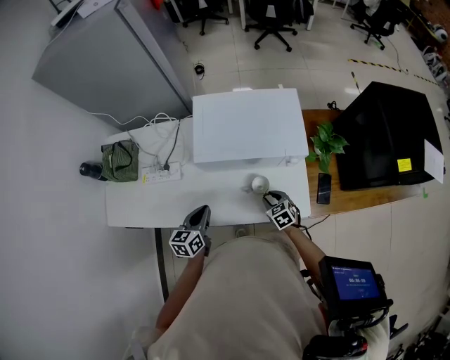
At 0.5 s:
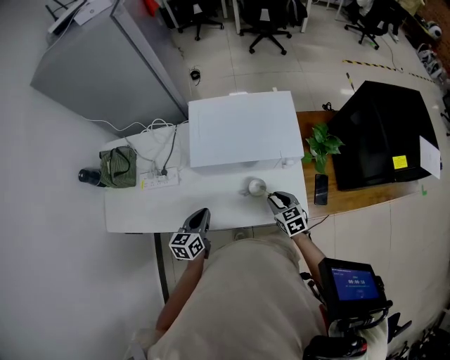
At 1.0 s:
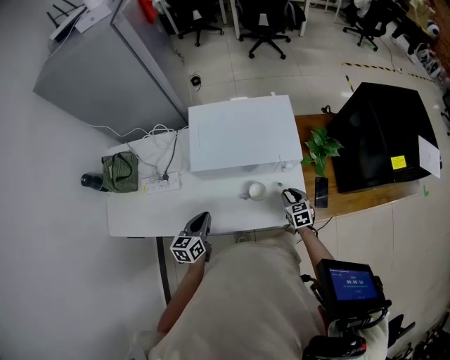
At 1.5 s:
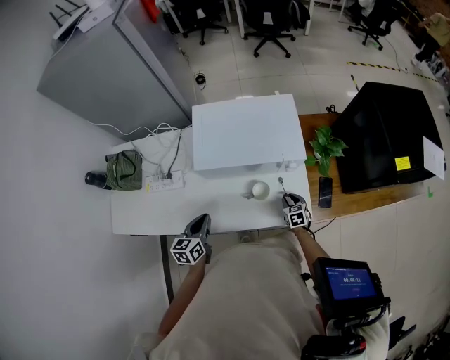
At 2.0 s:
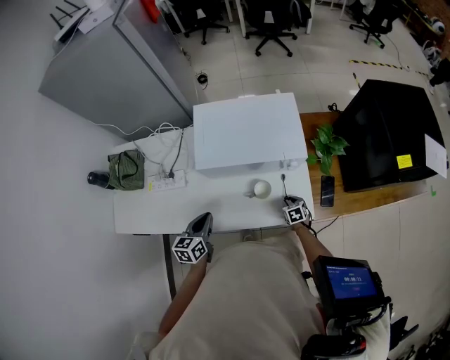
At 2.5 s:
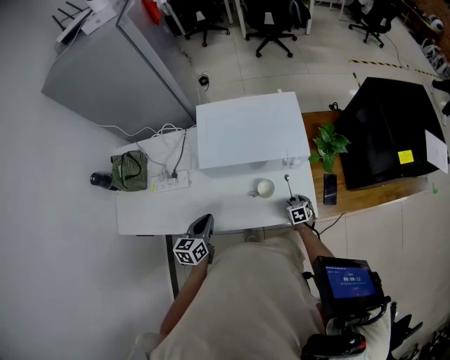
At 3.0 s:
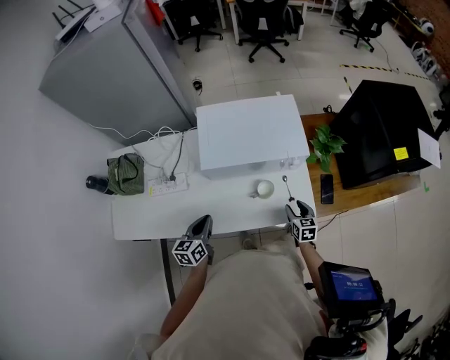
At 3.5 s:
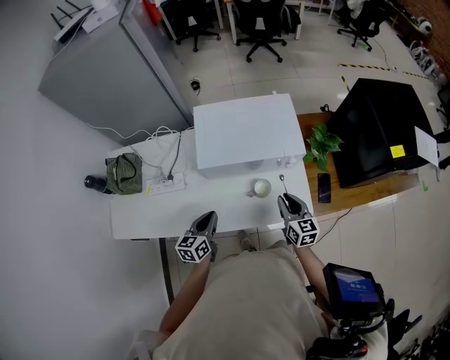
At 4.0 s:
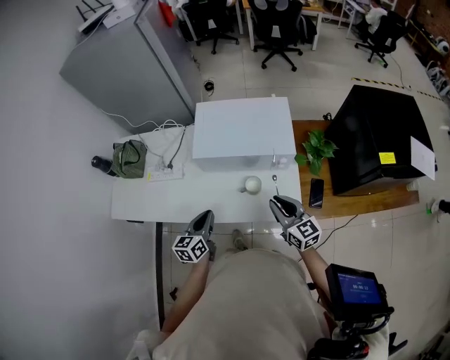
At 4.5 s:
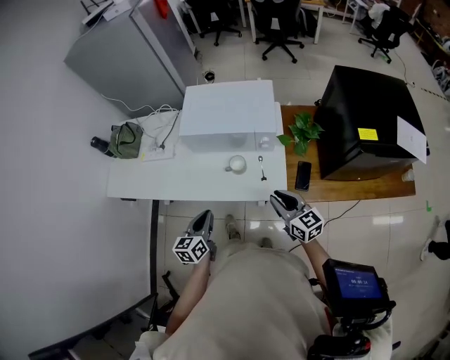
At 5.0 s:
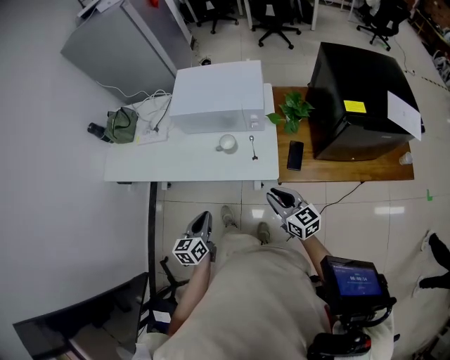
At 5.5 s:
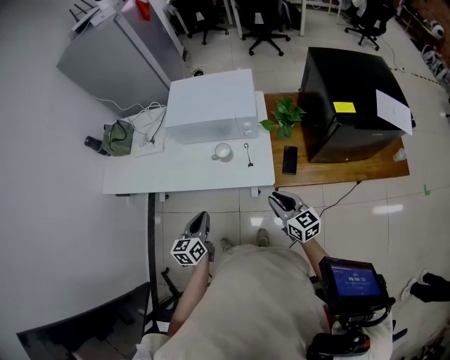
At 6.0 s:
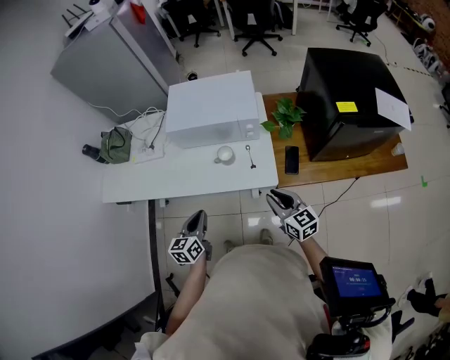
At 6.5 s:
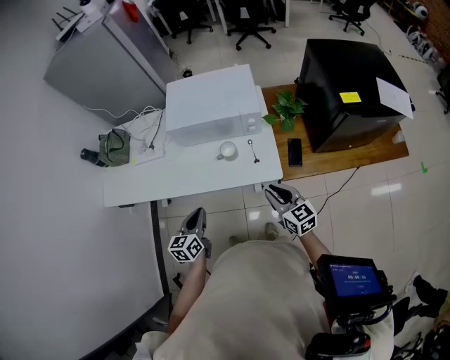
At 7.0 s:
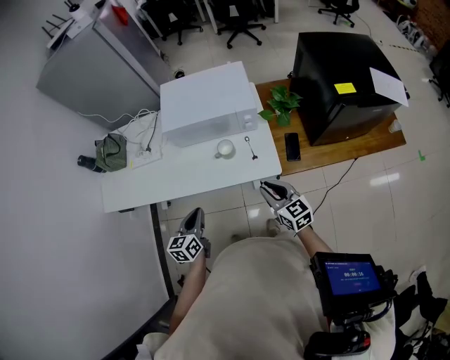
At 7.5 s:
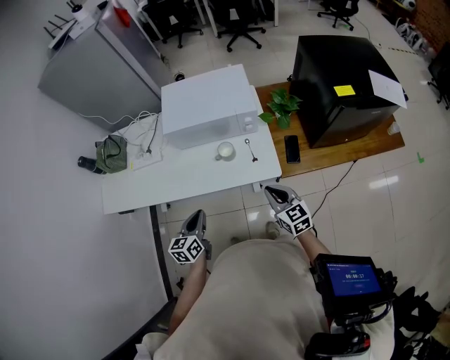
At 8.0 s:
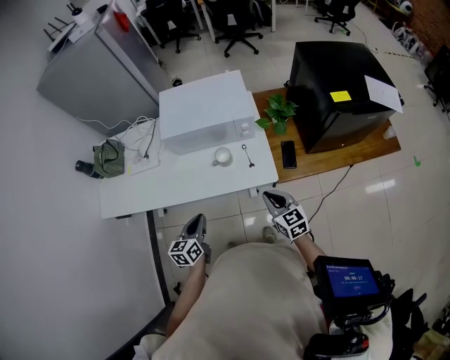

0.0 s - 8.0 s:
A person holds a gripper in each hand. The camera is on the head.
0.0 s - 2.0 s: The right gripper heads downward and to the right, covering some 15 cm.
2.0 s - 4.0 s: The left gripper goes about 10 cm to the right and backward. Meanwhile the right gripper travels upward by roughly 35 cm, angles its fingers upward, by roughly 50 degrees, and opens and closes again.
4.0 s - 6.0 s: The right gripper heads backward and to the right, covering about 20 cm, while the left gripper moves backward, approximately 15 cm.
6.0 s - 8.0 s: The left gripper ends up roughly 5 cm from where it was. Meanwhile the right gripper heads to the left, covering roughly 5 cm.

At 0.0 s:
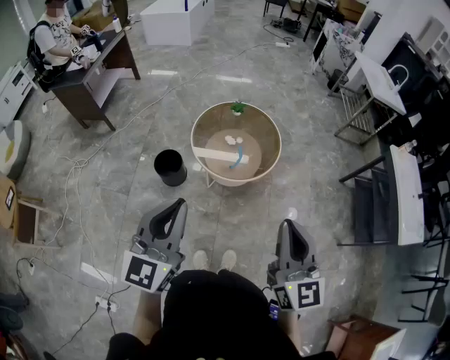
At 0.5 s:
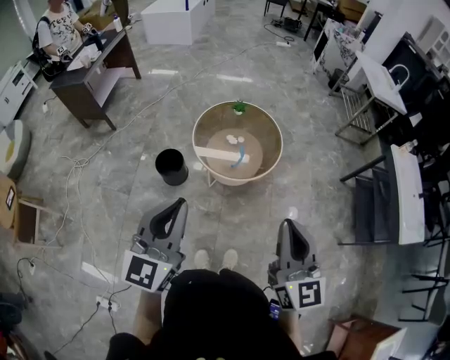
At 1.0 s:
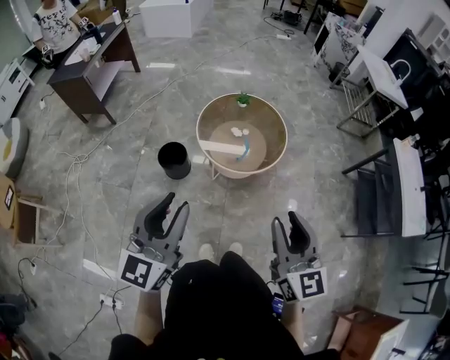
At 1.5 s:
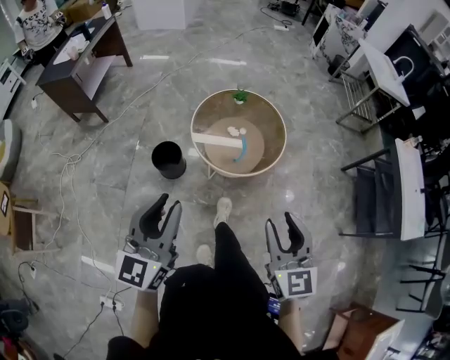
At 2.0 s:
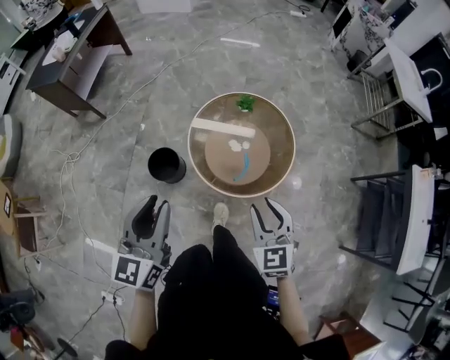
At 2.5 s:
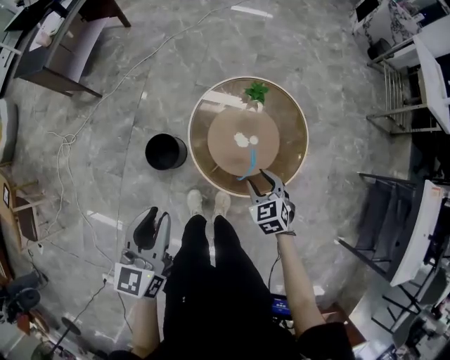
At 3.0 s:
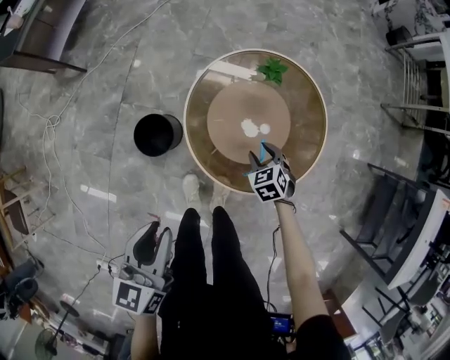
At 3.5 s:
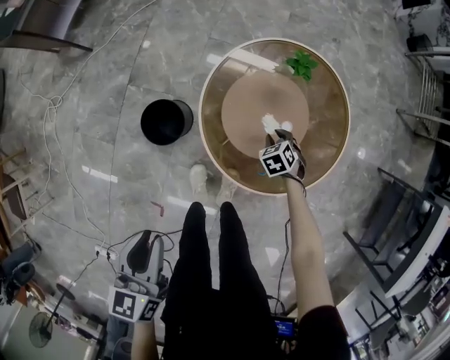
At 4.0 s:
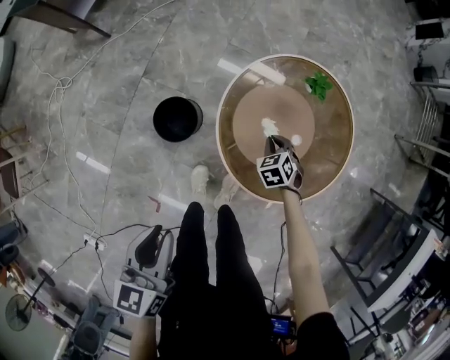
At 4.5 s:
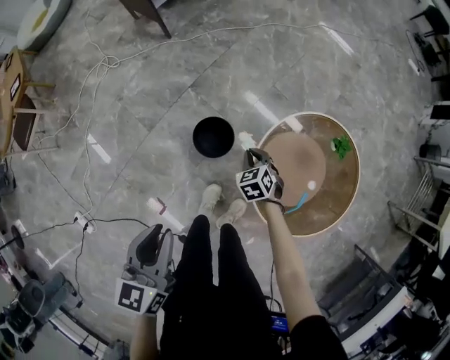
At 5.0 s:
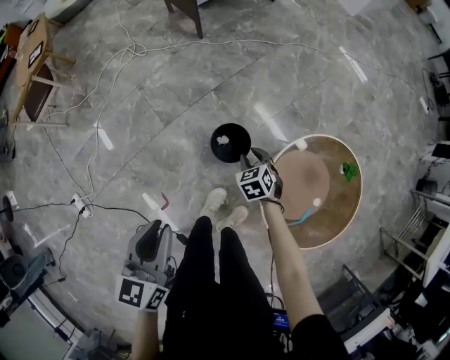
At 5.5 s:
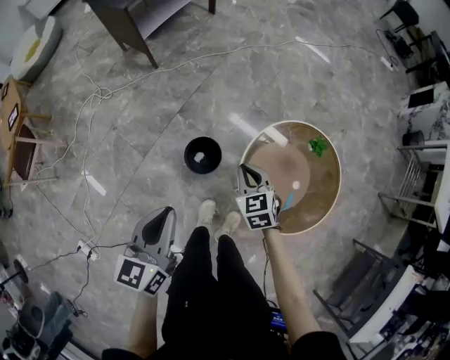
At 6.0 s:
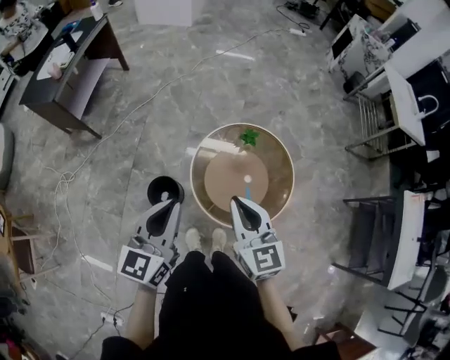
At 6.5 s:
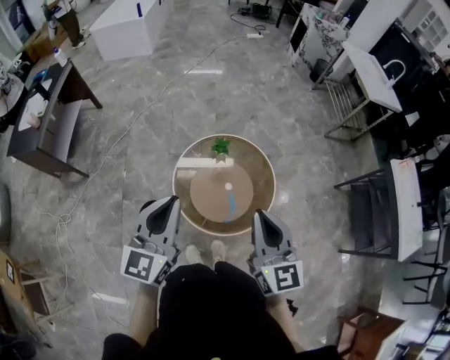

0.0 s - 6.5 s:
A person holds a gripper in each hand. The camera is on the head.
0.0 s - 2.0 s: Both grippers travel together forward and downward, about 30 cm. The left gripper opens up, while the right gripper changes its angle by roughly 40 degrees, and opens.
2.0 s - 4.5 s: The left gripper changes place by approximately 20 cm, and turns by approximately 40 degrees. Meanwhile the right gripper moves some 50 cm, points its fingers some 30 degrees further downward, and closes up.
4.5 s - 6.5 s: The right gripper shifts some 50 cm upward, angles its fingers upward, by roughly 50 degrees, and opens and closes again, while the left gripper moves roughly 35 cm, and rotates approximately 60 degrees.

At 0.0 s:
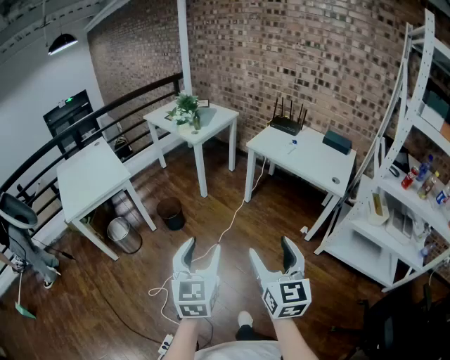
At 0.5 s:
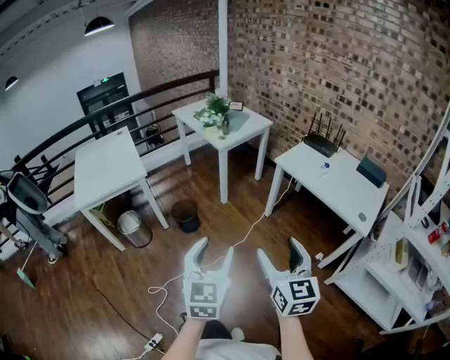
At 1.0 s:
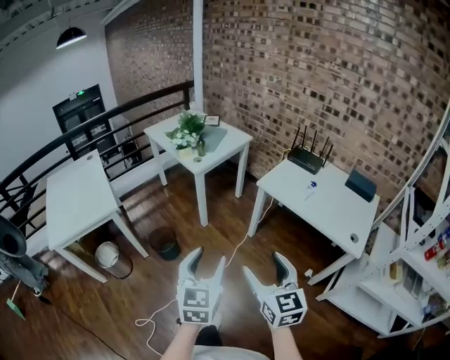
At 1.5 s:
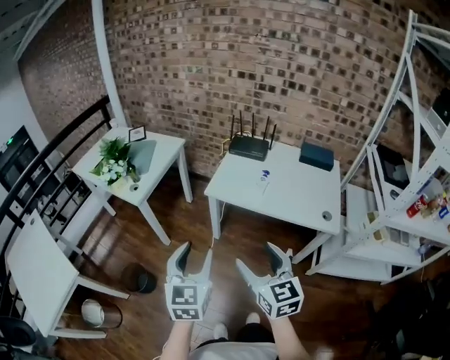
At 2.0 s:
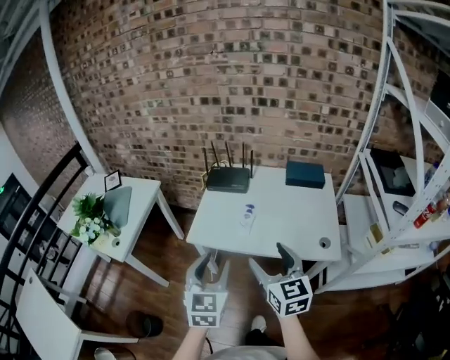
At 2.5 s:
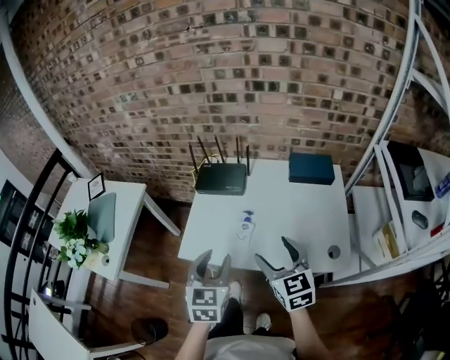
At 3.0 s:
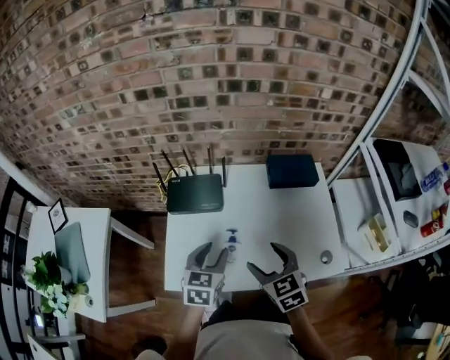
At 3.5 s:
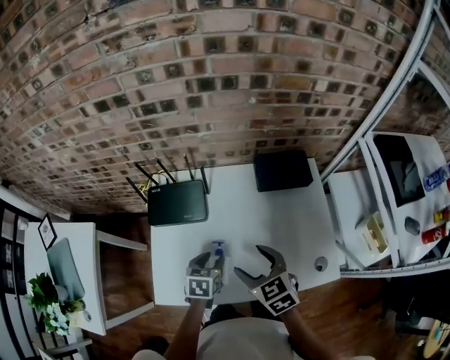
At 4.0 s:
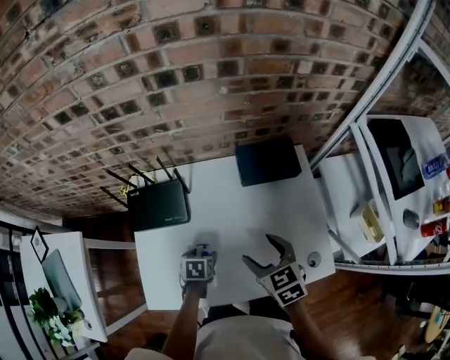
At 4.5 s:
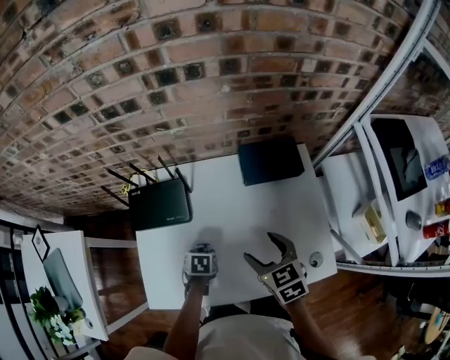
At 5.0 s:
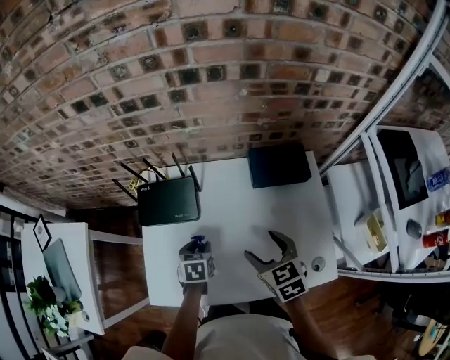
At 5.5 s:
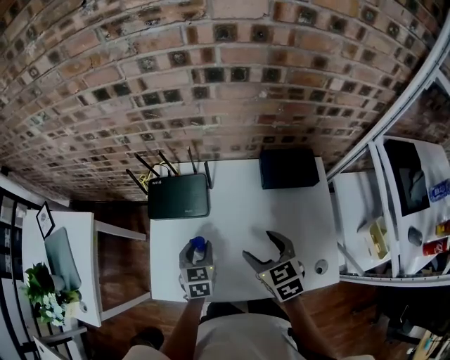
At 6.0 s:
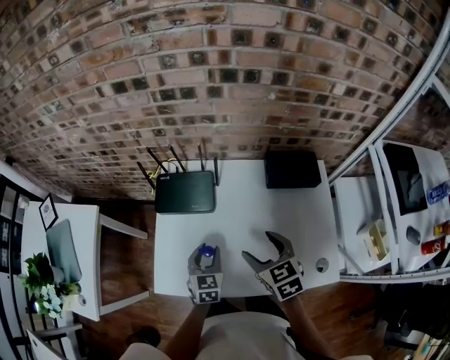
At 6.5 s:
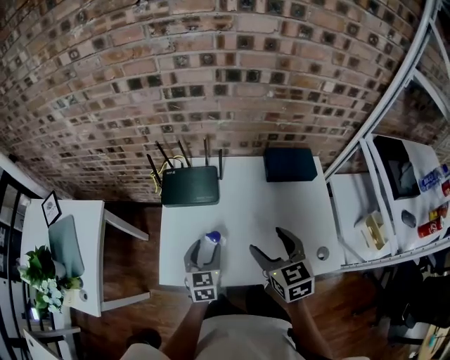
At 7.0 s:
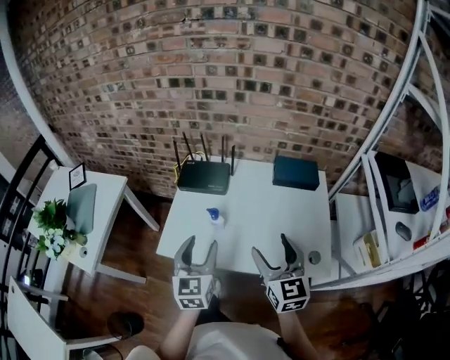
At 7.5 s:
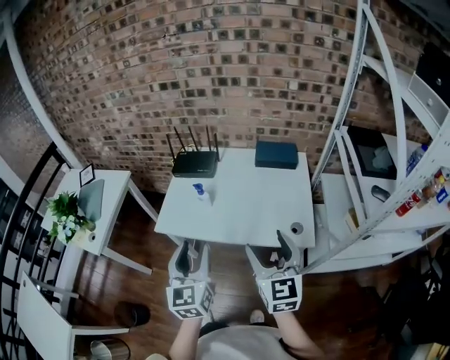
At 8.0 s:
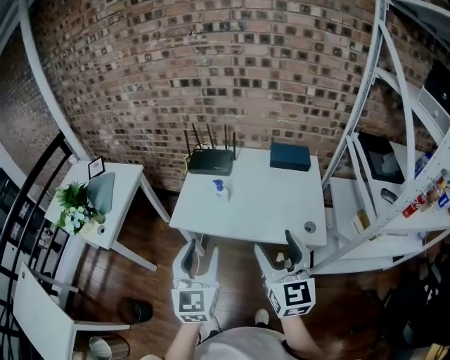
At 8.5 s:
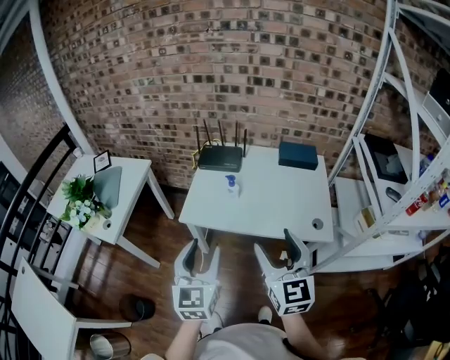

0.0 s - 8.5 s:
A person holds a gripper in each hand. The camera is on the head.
0.0 s - 2.0 s: The two grippers travel together, approximately 60 cm. The right gripper rotates approximately 20 degrees, while the left gripper rotates some 30 degrees.
2.0 s - 4.0 s: The grippers both shift forward and downward by roughly 50 cm. The right gripper swivels roughly 30 degrees; the left gripper tips its fingers downward by about 50 degrees, and opens its fingers.
4.0 s - 6.5 s: The right gripper shifts about 10 cm to the left, upward and backward; the left gripper is displaced upward and to the left by approximately 15 cm, and points its fingers approximately 40 degrees further upward.
6.5 s - 8.5 s: The two grippers go some 40 cm backward and upward. The left gripper rotates roughly 20 degrees. Meanwhile the right gripper rotates some 30 degrees.

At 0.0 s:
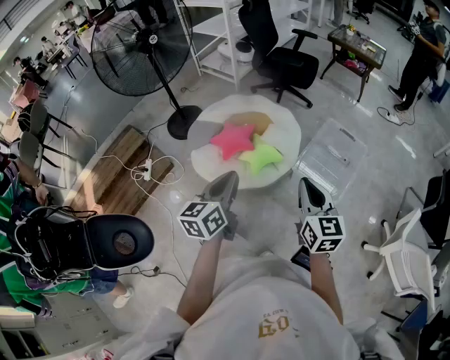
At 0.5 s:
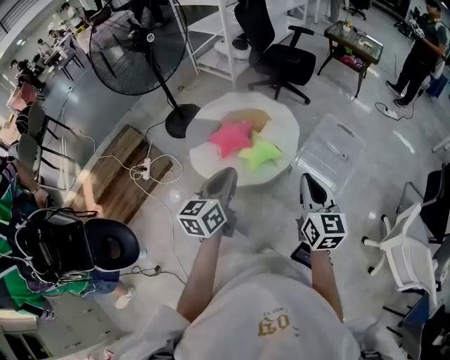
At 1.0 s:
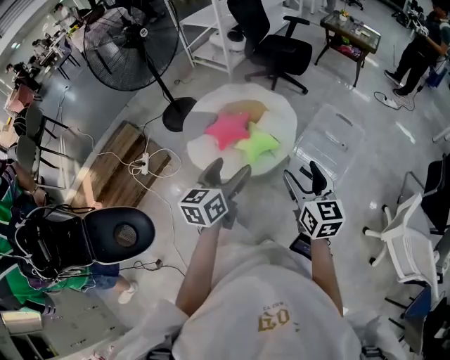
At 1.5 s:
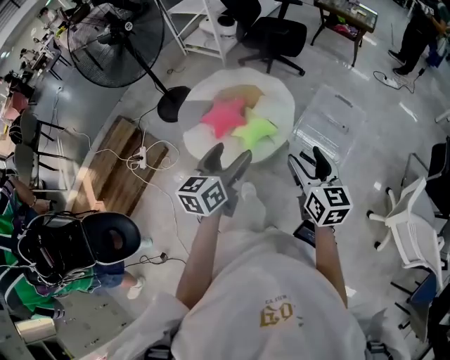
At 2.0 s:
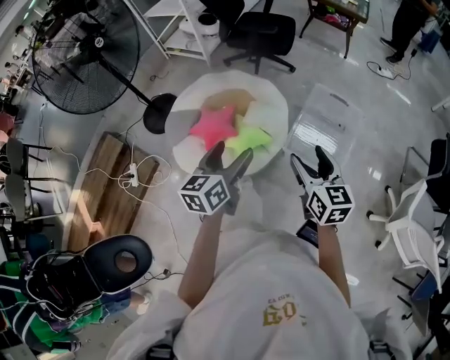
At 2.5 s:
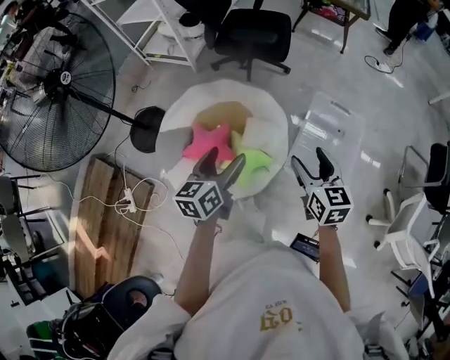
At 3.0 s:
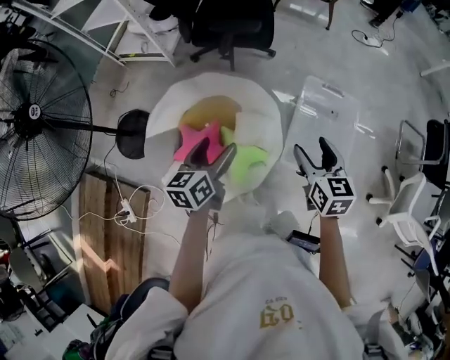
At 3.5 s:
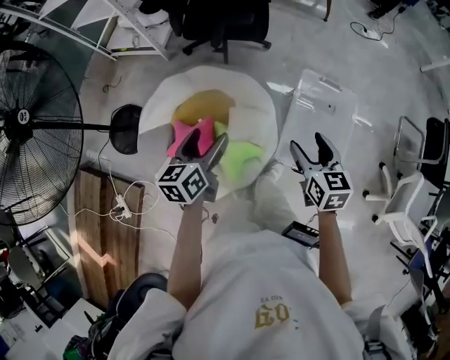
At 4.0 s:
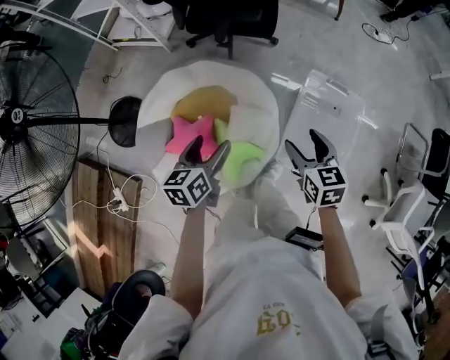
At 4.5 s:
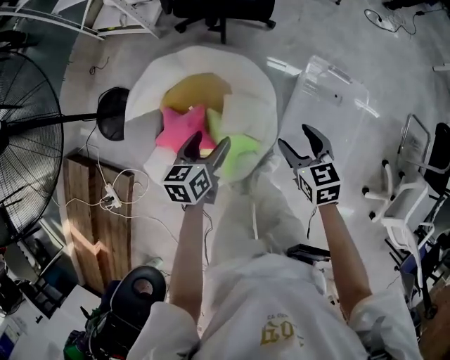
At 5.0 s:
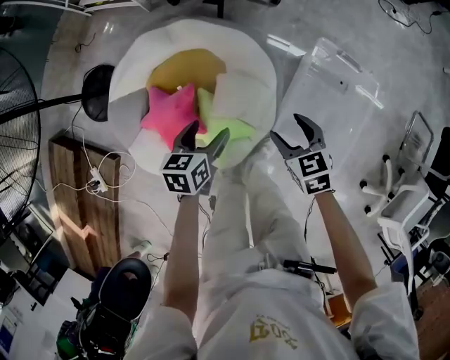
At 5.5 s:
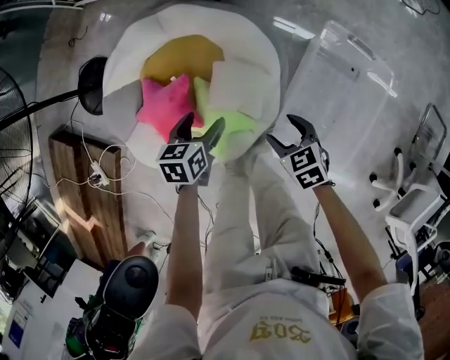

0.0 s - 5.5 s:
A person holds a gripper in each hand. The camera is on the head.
0.0 s - 2.0 s: The left gripper goes some 20 cm forward and to the right, and opens up. The right gripper is displaced forward, downward and to the right by approximately 20 cm, and opens its fingers.
2.0 s - 3.5 s: Both grippers move forward, about 35 cm.
3.5 s - 5.5 s: Both grippers travel together downward, about 30 cm. The left gripper changes its angle by roughly 30 degrees. Meanwhile the right gripper rotates about 40 degrees.
